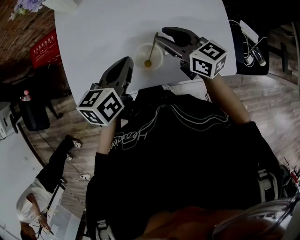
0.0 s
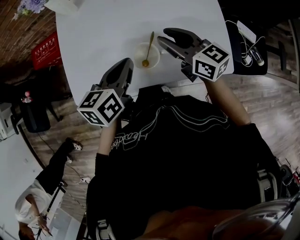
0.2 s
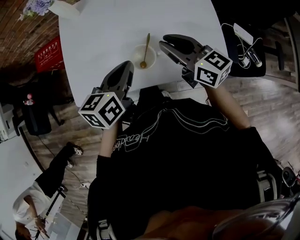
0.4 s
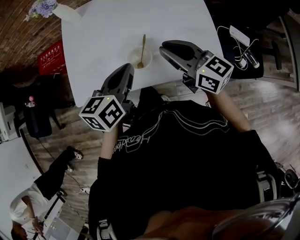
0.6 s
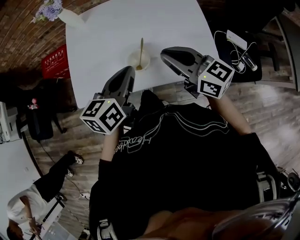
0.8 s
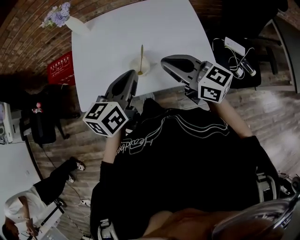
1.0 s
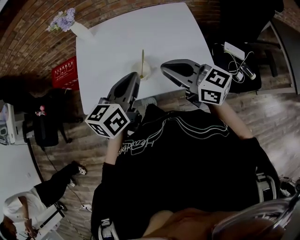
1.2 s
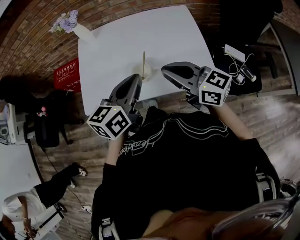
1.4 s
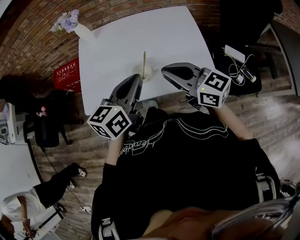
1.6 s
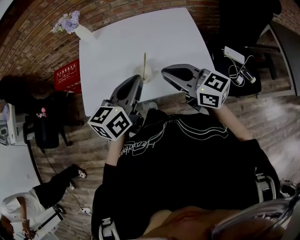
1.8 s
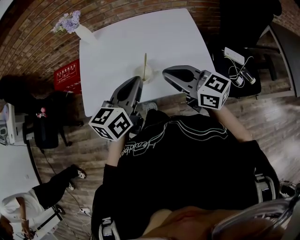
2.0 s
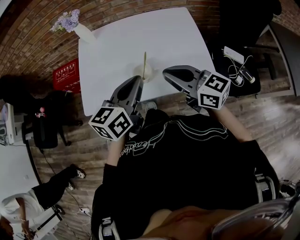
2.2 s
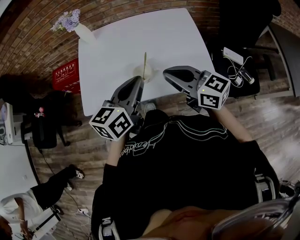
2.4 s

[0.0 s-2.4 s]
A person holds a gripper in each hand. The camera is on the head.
0.0 to 1.2 s: The left gripper moves upward, backward and to the right, about 20 cm, while the right gripper is displaced upward and backward by some 20 cm, and closes.
1.2 to 2.4 s: The grippers make only small movements.

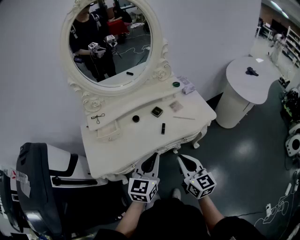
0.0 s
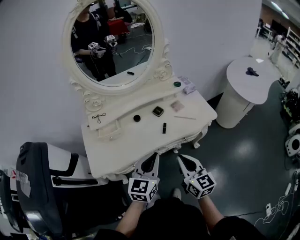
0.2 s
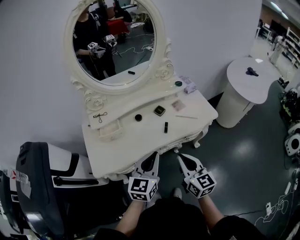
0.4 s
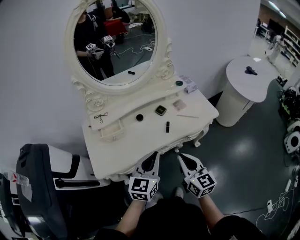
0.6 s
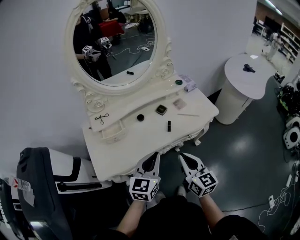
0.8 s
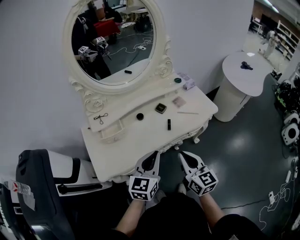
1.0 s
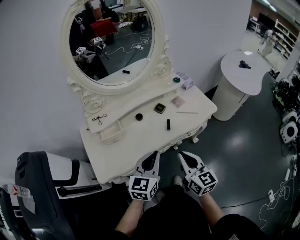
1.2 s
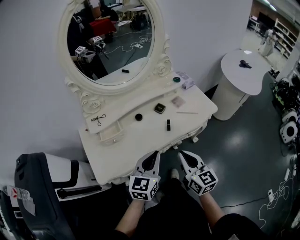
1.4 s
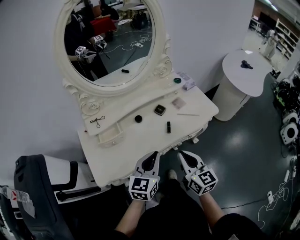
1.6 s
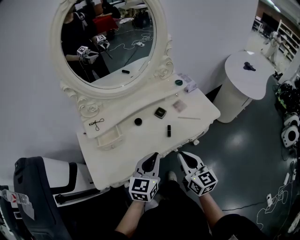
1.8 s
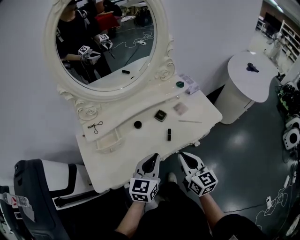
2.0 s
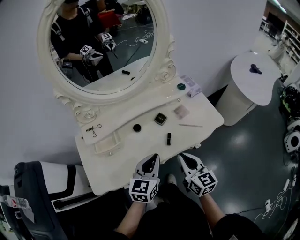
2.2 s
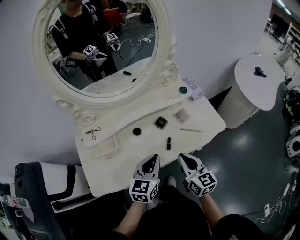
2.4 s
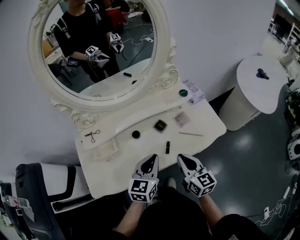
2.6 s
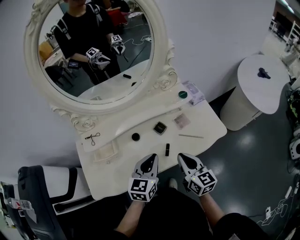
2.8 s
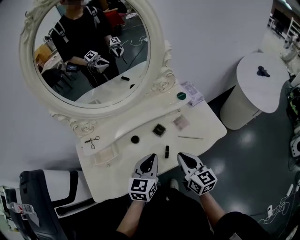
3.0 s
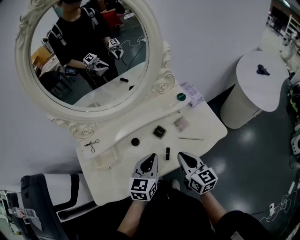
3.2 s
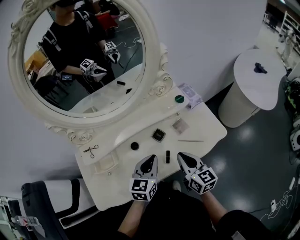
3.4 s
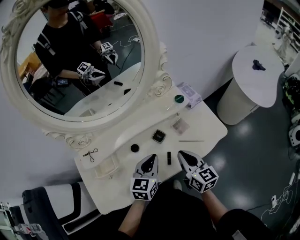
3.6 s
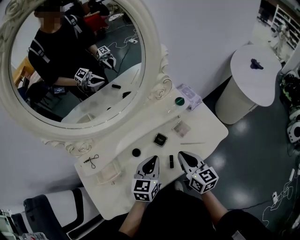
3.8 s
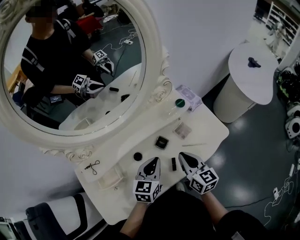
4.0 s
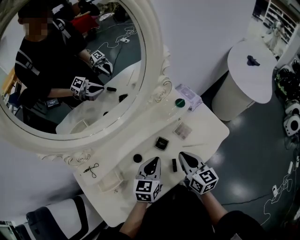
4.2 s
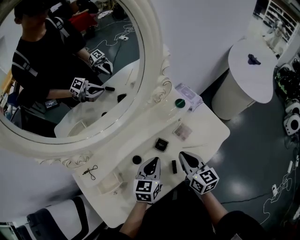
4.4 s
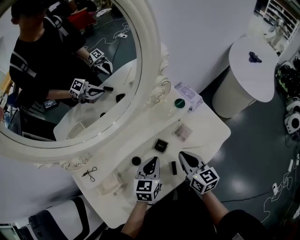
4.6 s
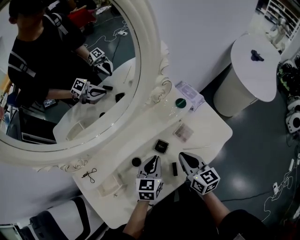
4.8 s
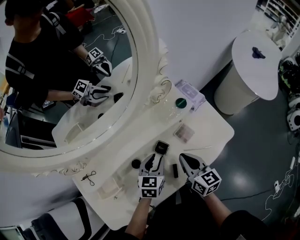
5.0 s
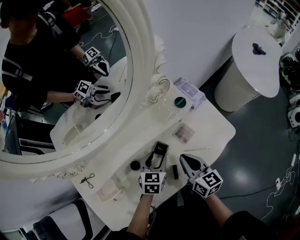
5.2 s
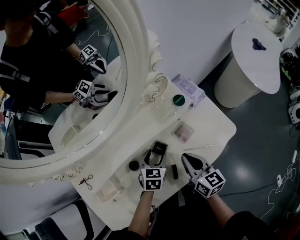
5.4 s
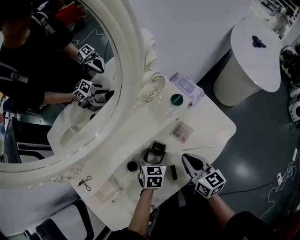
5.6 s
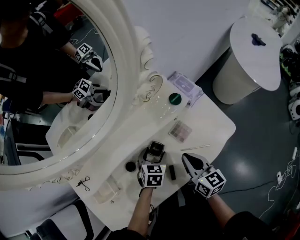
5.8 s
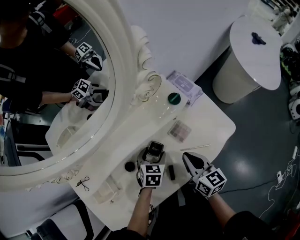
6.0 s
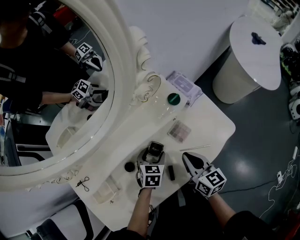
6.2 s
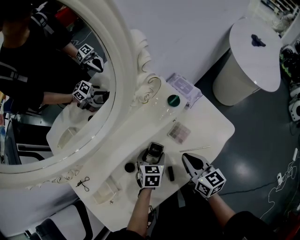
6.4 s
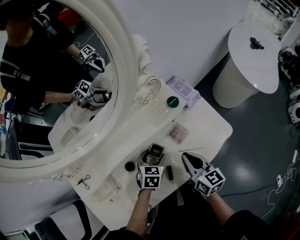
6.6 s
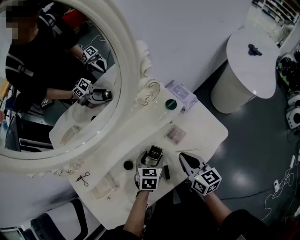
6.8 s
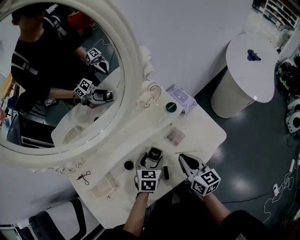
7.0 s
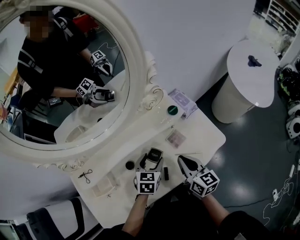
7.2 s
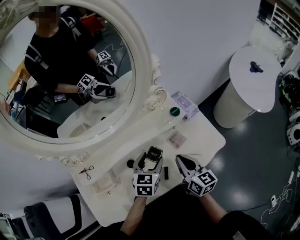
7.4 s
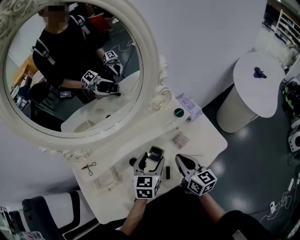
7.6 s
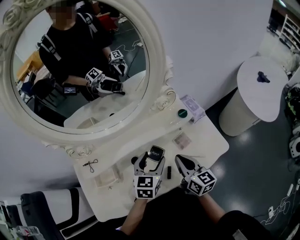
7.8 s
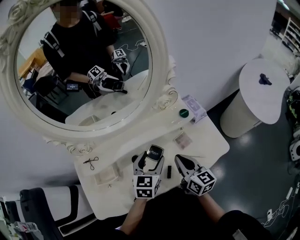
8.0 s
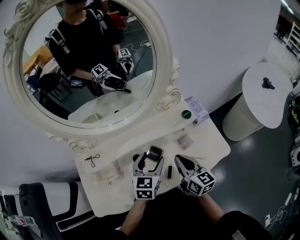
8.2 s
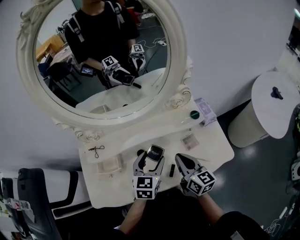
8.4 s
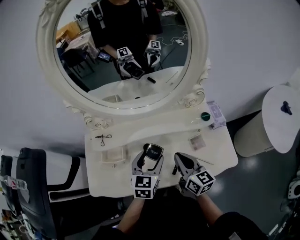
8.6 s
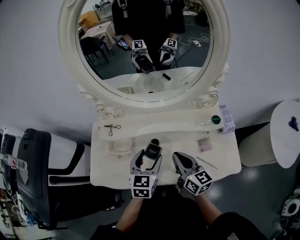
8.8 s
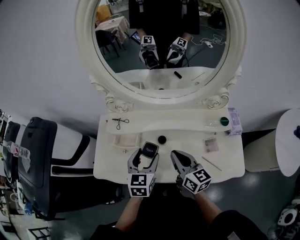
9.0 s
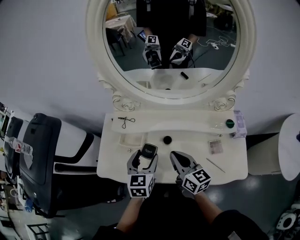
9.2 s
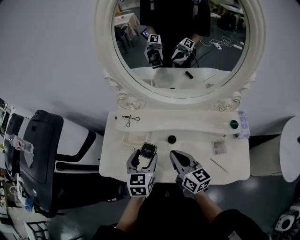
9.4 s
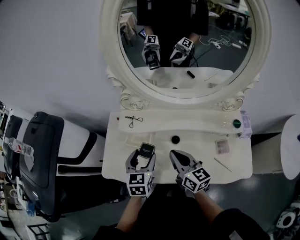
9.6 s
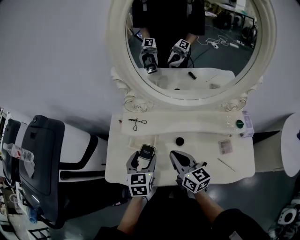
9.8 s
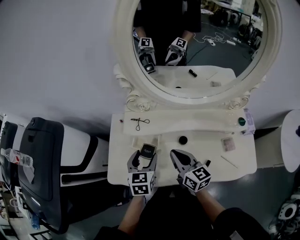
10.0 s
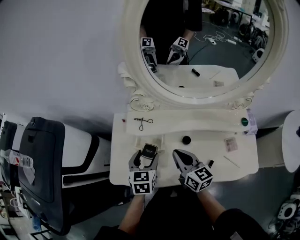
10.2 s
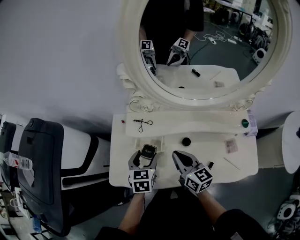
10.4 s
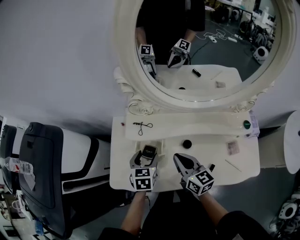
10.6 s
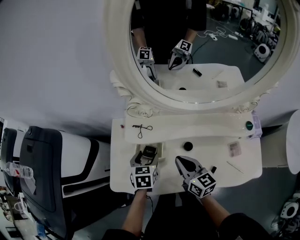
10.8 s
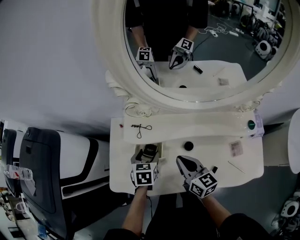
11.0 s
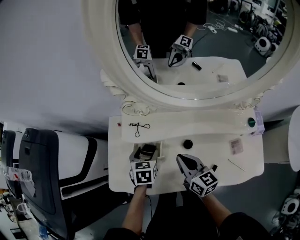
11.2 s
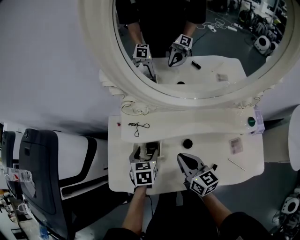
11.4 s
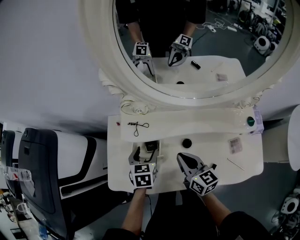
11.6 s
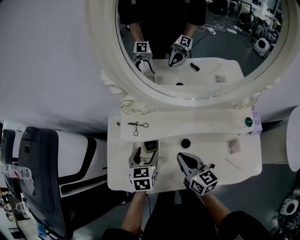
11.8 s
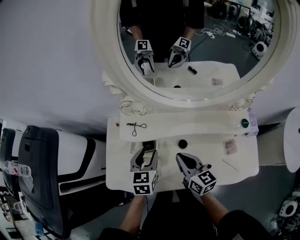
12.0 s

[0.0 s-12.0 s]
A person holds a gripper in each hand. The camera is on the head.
0.0 to 1.6 s: Both grippers move to the left, roughly 5 cm.
1.6 to 3.0 s: The grippers both shift forward by approximately 15 cm.
3.0 to 4.4 s: The left gripper heads forward and downward, covering approximately 15 cm. Meanwhile the right gripper goes about 10 cm forward.
4.4 to 6.0 s: The right gripper shifts some 5 cm downward, while the left gripper goes approximately 15 cm downward and forward, swivels about 30 degrees, and opens its fingers.
6.0 to 7.6 s: The right gripper heads upward, covering roughly 10 cm; the left gripper heads upward, covering about 20 cm, and rotates about 20 degrees.
7.6 to 9.0 s: The left gripper ends up roughly 20 cm from where it was, and rotates about 40 degrees. The right gripper changes place by about 15 cm, and swivels roughly 30 degrees.
9.0 to 10.4 s: The left gripper heads to the left, forward and downward, covering some 20 cm. Meanwhile the right gripper heads to the left and forward, covering about 15 cm.
10.4 to 12.0 s: The left gripper travels to the right by about 5 cm.

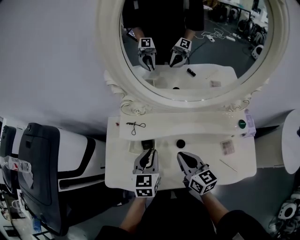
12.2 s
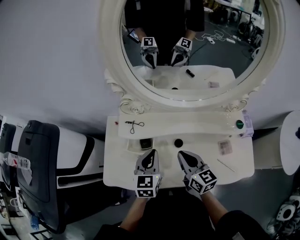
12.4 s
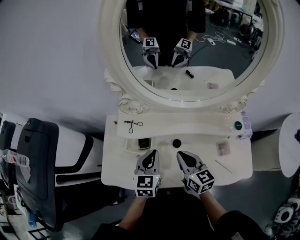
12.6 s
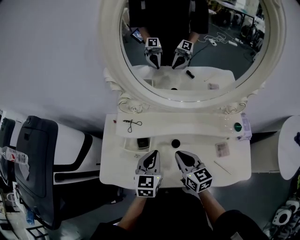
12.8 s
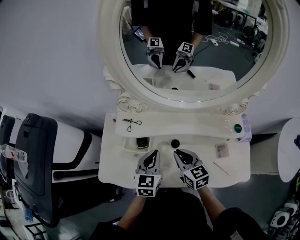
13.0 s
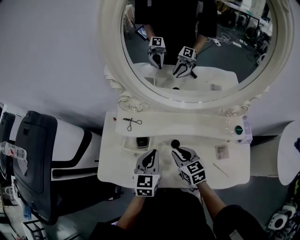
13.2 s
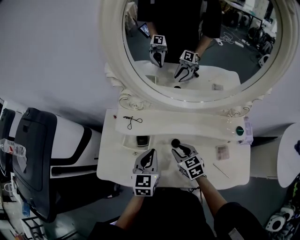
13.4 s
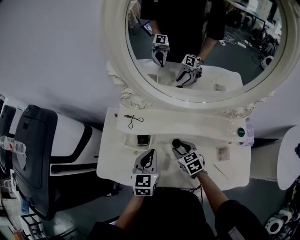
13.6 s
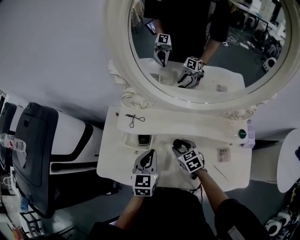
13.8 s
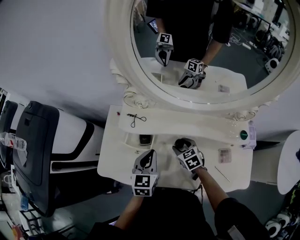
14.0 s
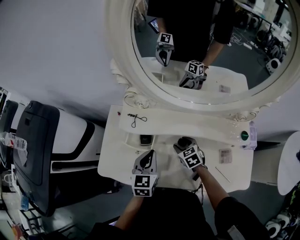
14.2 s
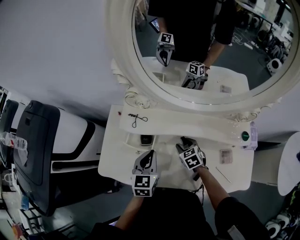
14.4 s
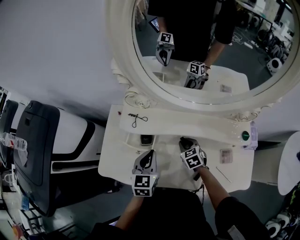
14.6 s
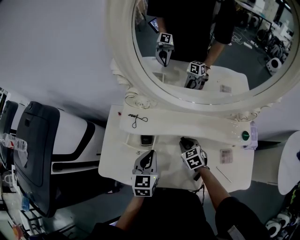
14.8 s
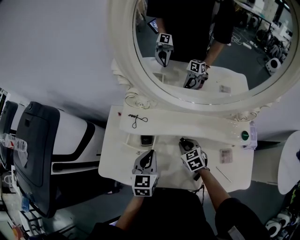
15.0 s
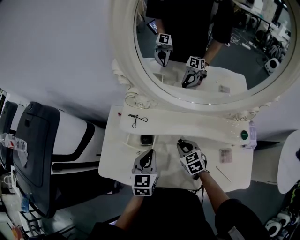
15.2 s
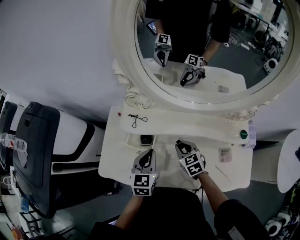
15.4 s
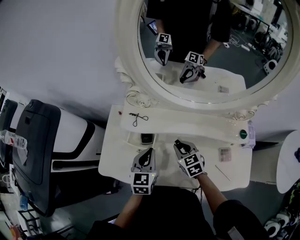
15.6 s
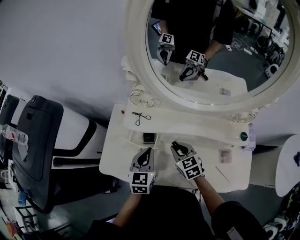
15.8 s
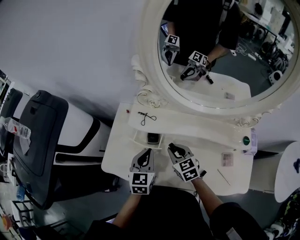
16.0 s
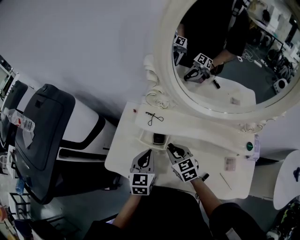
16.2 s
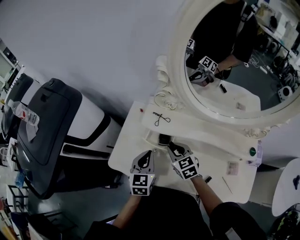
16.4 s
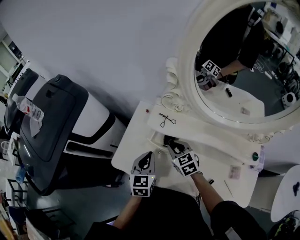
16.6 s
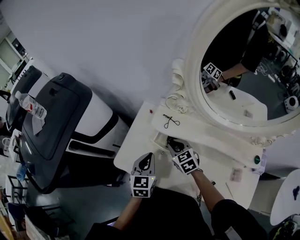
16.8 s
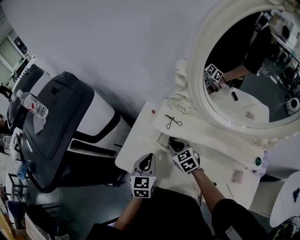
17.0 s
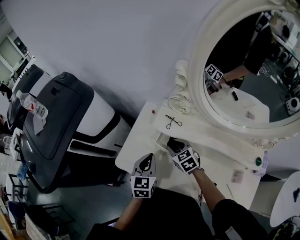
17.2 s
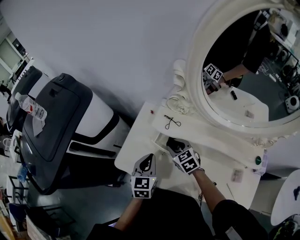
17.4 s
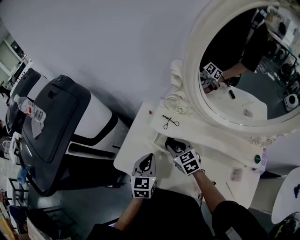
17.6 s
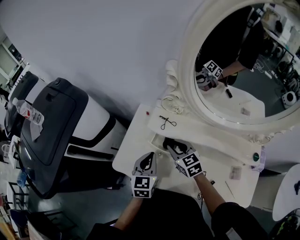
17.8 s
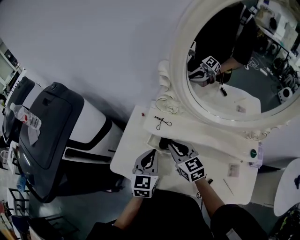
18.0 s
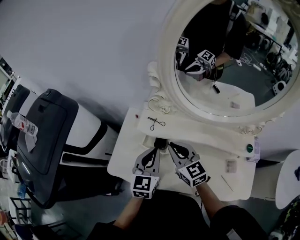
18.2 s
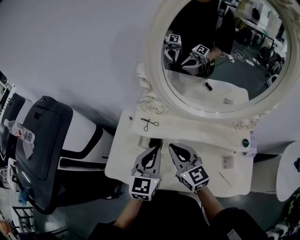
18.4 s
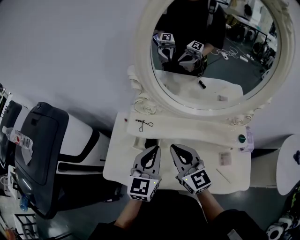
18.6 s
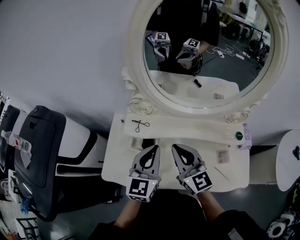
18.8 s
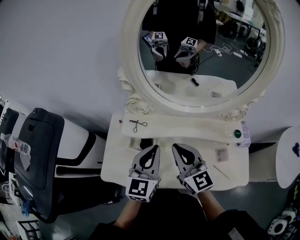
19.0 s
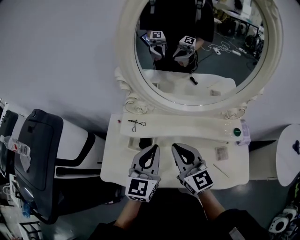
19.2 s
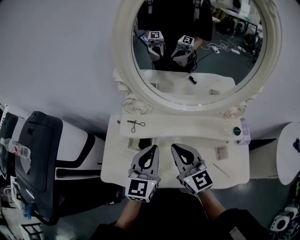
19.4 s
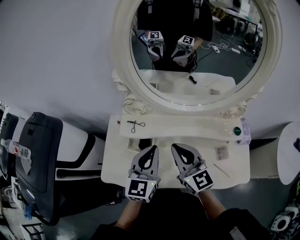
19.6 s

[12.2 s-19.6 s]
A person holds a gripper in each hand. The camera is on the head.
12.2 to 13.6 s: The right gripper is displaced downward by approximately 15 cm, tips its fingers downward by some 30 degrees, and opens its fingers.
13.6 to 15.2 s: The grippers move only a little.
15.2 to 16.6 s: Both grippers travel together to the left, roughly 15 cm.
16.6 to 18.2 s: The left gripper goes about 10 cm upward and to the right. Meanwhile the right gripper goes some 10 cm upward, and swivels approximately 20 degrees.
18.2 to 19.6 s: Both grippers travel together to the right and upward, some 10 cm.

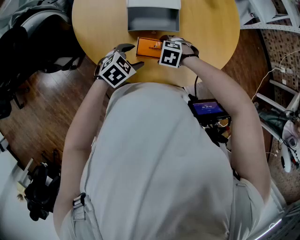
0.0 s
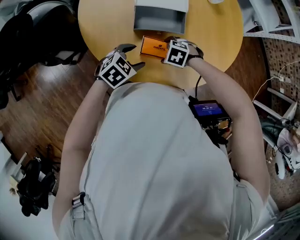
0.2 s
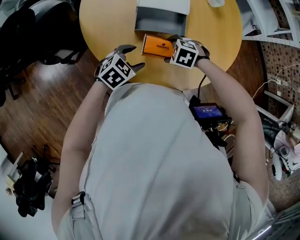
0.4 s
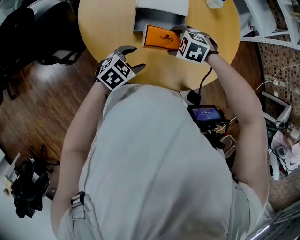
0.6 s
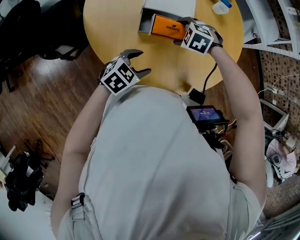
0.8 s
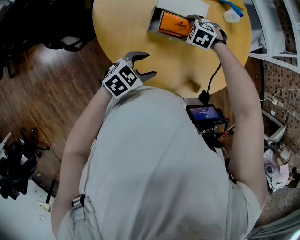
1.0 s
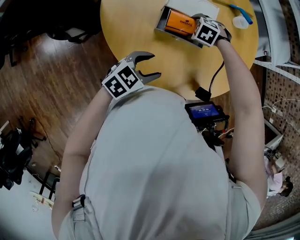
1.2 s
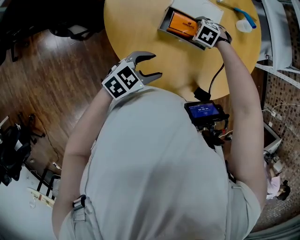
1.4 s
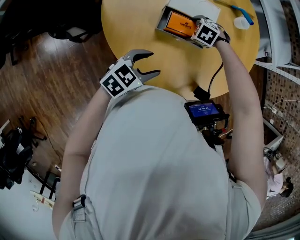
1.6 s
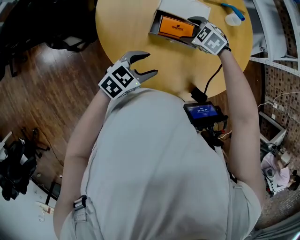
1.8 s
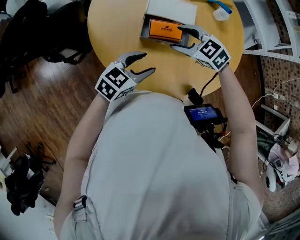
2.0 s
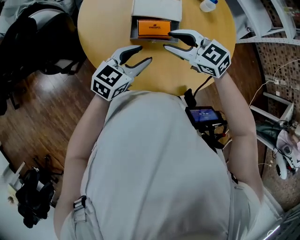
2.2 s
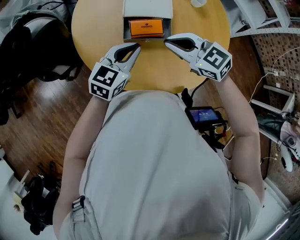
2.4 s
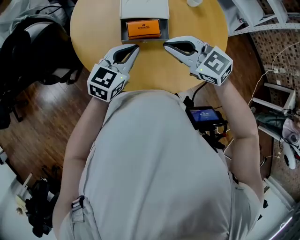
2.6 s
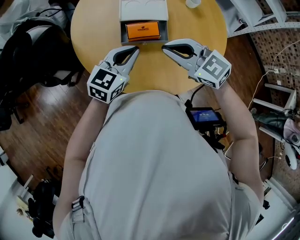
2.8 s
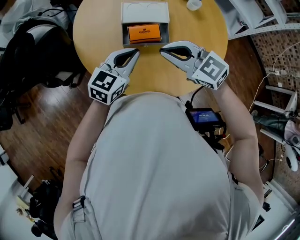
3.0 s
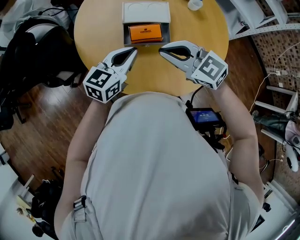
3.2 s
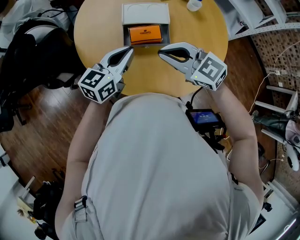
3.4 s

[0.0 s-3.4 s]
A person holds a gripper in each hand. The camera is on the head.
0.0 to 1.6 s: The left gripper is displaced upward by about 5 cm, and turns by about 20 degrees. The right gripper moves about 10 cm upward and comes back.
1.6 to 3.4 s: The left gripper shifts roughly 10 cm upward, swivels about 30 degrees, and closes up. The right gripper goes some 25 cm upward, angles its fingers upward, by roughly 60 degrees, and closes up.
